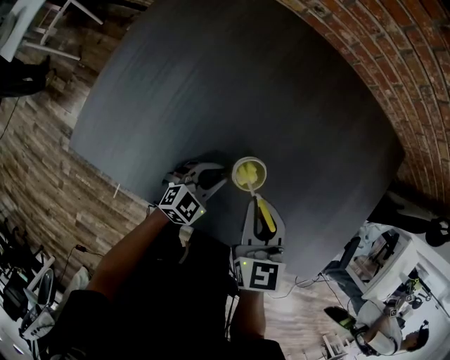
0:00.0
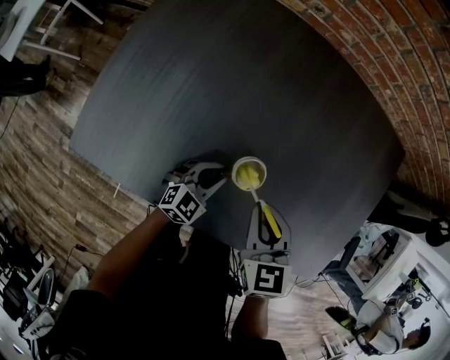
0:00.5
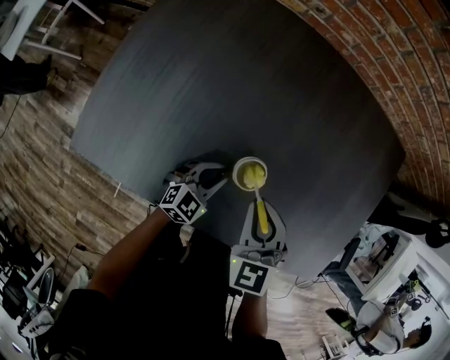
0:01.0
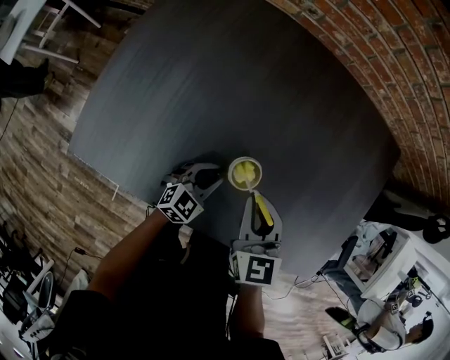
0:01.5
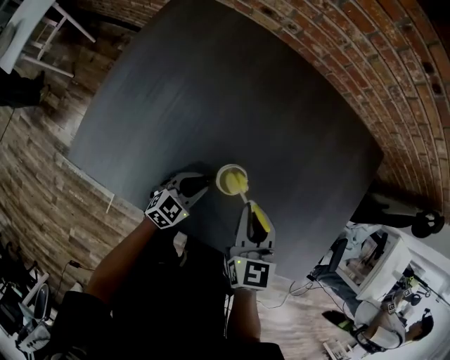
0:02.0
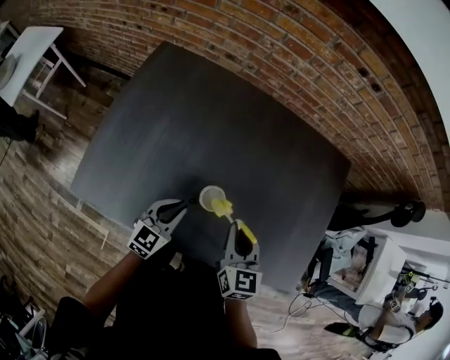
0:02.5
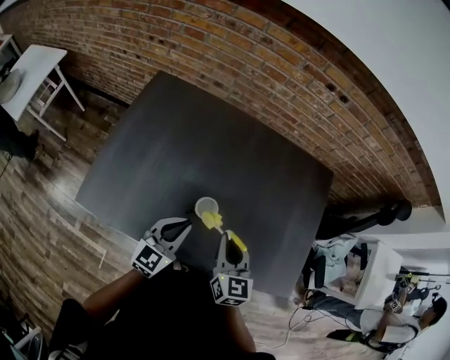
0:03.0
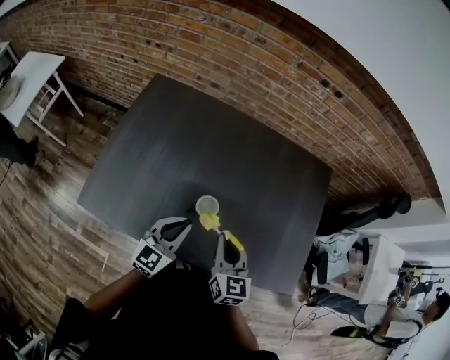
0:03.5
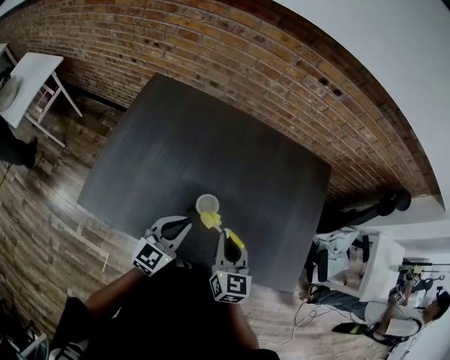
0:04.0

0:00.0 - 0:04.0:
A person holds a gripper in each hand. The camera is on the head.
0:02.0 - 0:04.0: The left gripper goes about 25 cm upward, and swivels about 20 degrees. The right gripper moves upward and backward, some 15 cm.

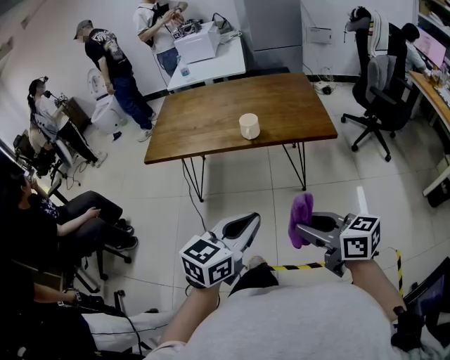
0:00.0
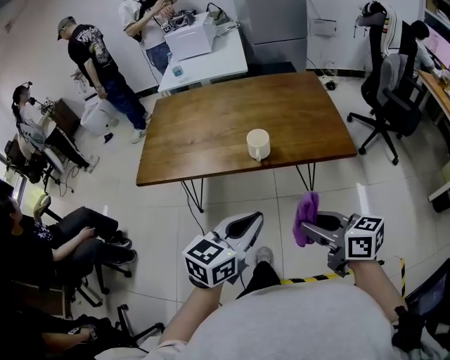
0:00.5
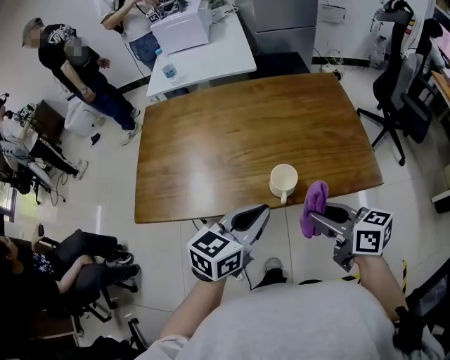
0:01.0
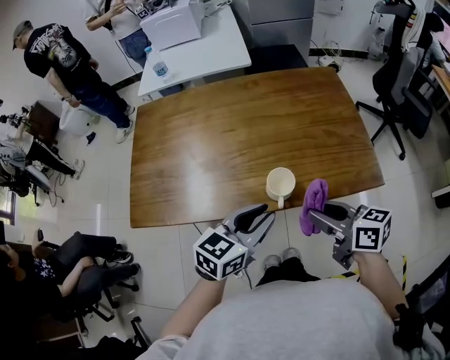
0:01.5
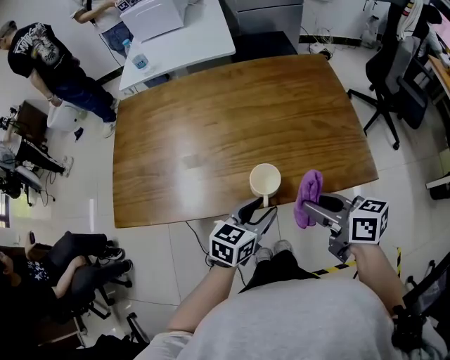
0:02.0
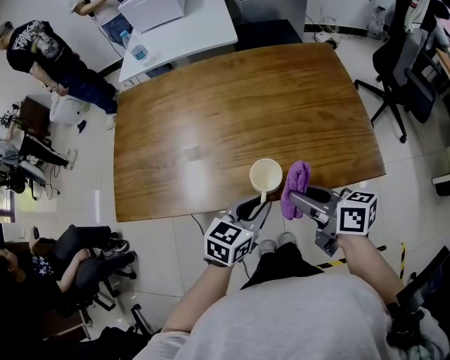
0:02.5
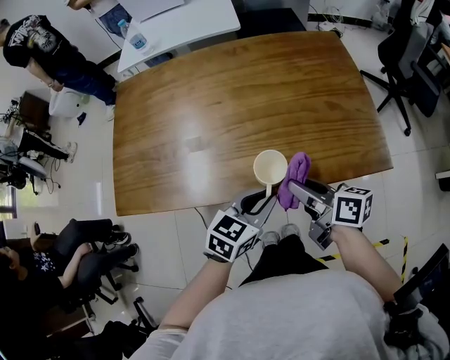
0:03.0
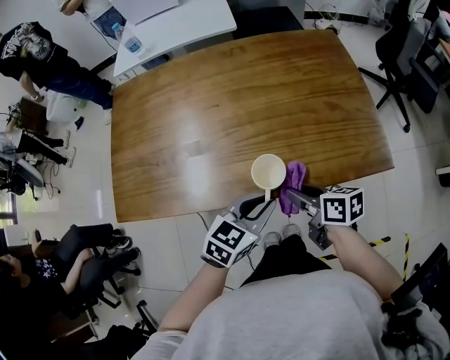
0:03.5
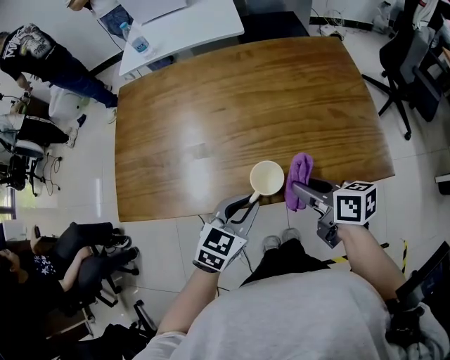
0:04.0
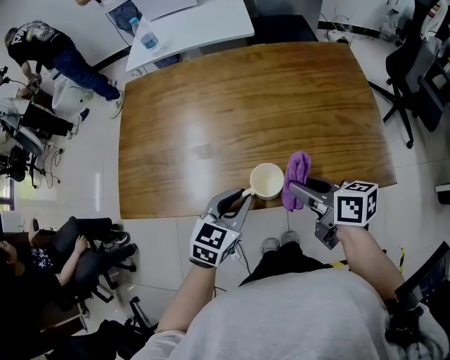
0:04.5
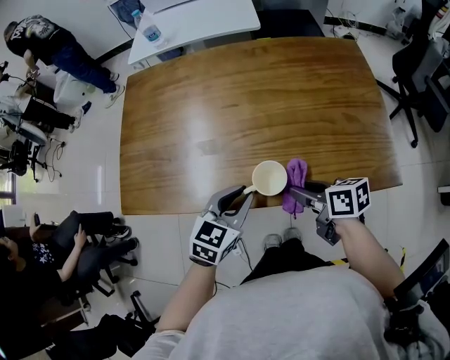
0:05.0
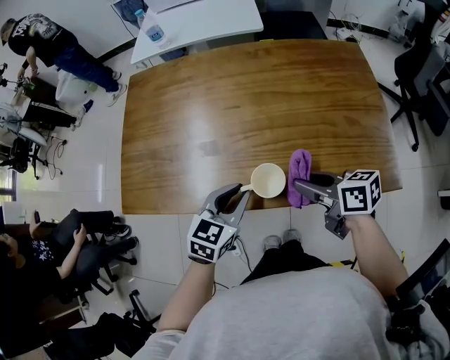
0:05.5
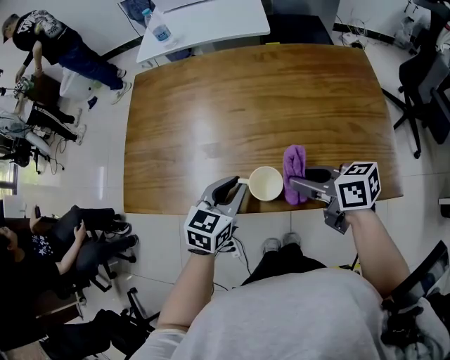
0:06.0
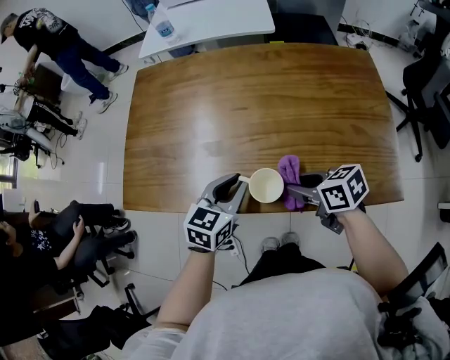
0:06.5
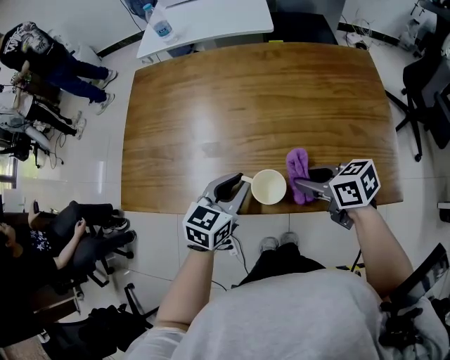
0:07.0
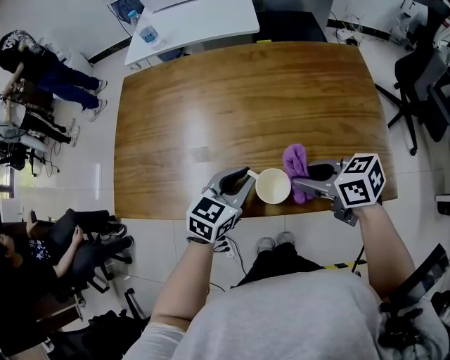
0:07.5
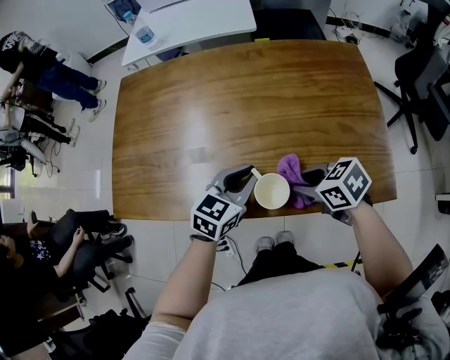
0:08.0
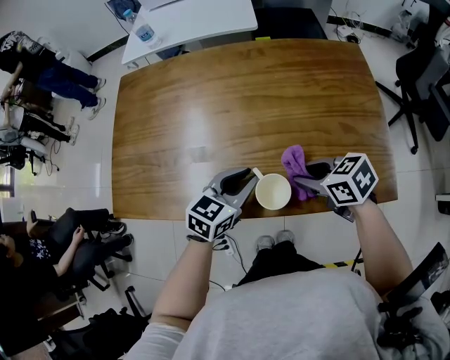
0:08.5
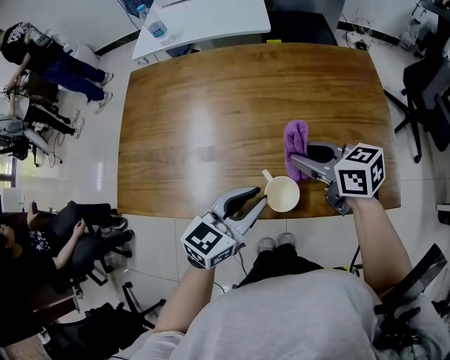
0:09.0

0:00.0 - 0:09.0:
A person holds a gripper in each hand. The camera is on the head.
0:00.0 - 0:02.0: The pair of grippers is taken forward, about 40 cm. The left gripper travels downward by some 20 cm, and opens up.
0:02.0 - 0:04.5: The right gripper is displaced forward and to the left by some 10 cm. The left gripper goes approximately 10 cm to the left, and closes.
0:04.5 - 0:07.0: The right gripper swings up and down, about 5 cm each way, with 2 reversals, and swivels roughly 30 degrees. The left gripper moves forward, approximately 5 cm.
0:07.0 - 0:09.0: The right gripper heads forward and upward, covering approximately 10 cm, while the left gripper goes some 10 cm upward and to the right.

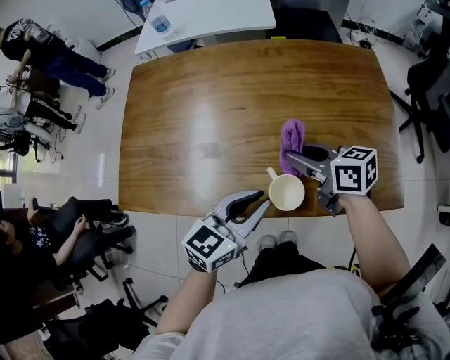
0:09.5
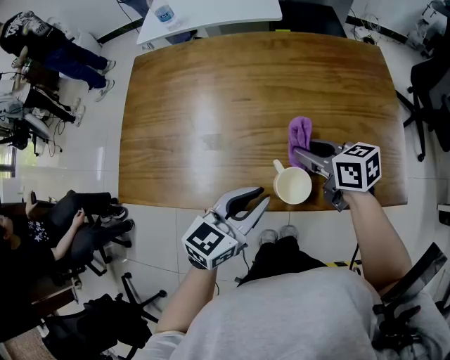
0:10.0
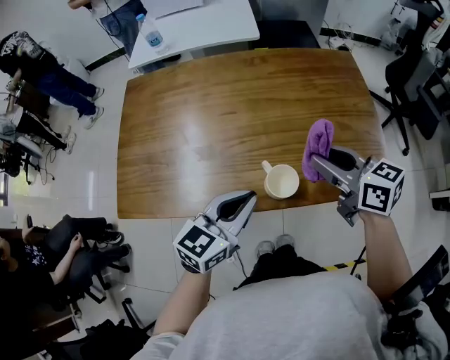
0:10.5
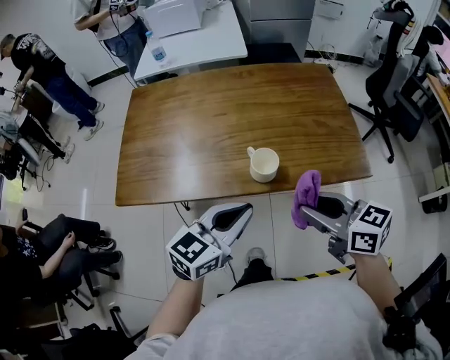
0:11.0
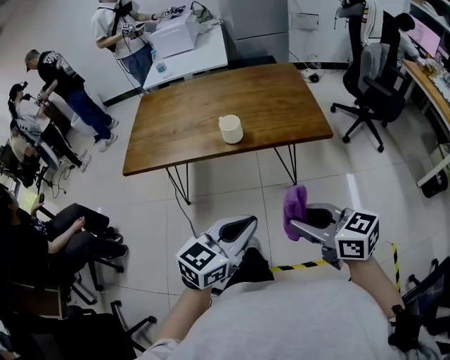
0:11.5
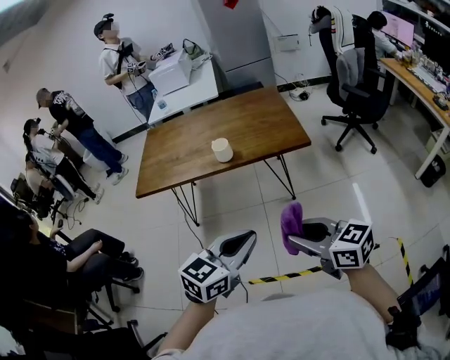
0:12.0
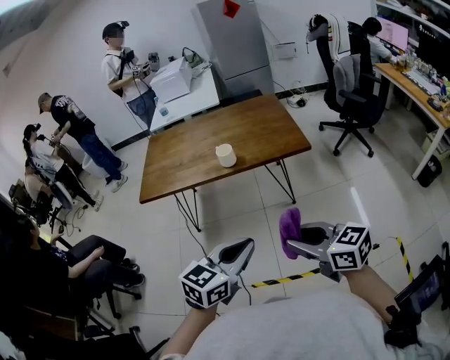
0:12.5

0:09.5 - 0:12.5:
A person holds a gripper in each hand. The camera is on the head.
0:09.5 - 0:11.0: The left gripper travels backward and upward by roughly 15 cm. Meanwhile the right gripper travels backward and upward by some 25 cm.
0:11.0 - 0:12.5: The two grippers travel together, backward, roughly 40 cm.

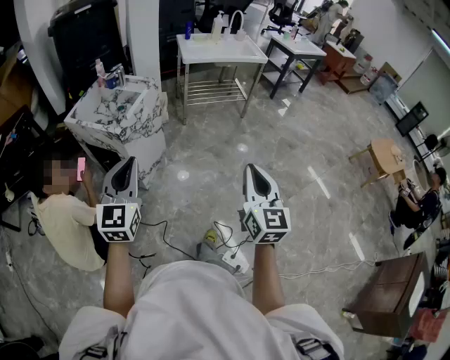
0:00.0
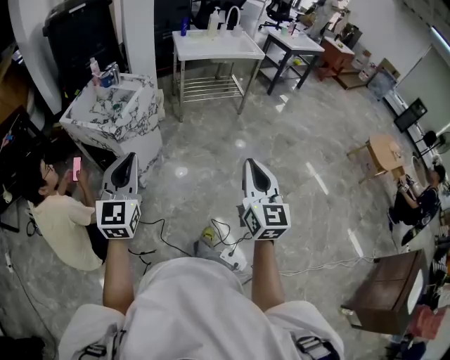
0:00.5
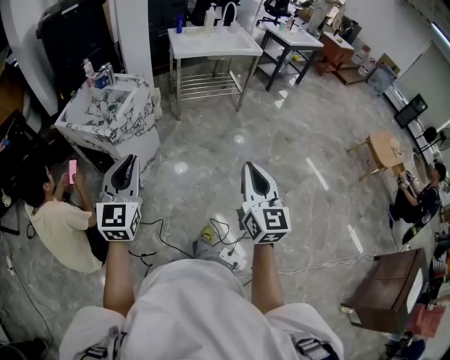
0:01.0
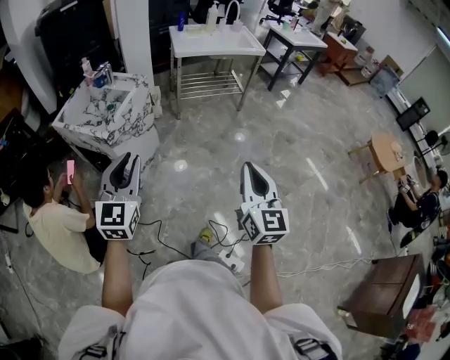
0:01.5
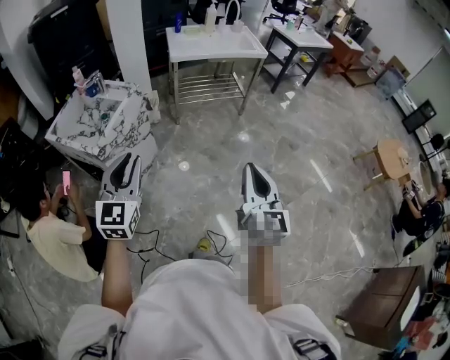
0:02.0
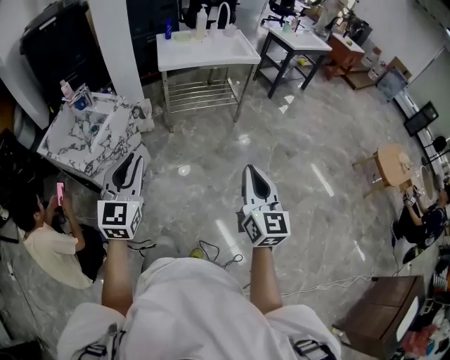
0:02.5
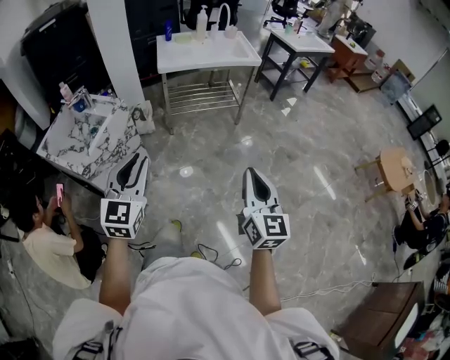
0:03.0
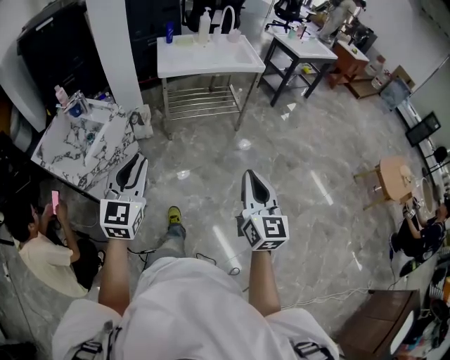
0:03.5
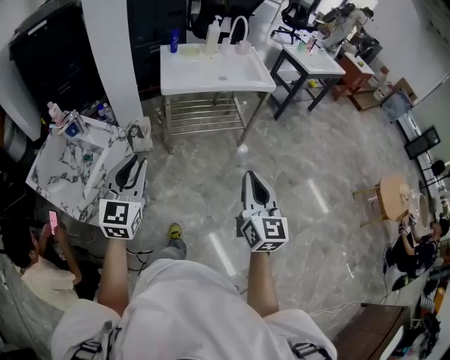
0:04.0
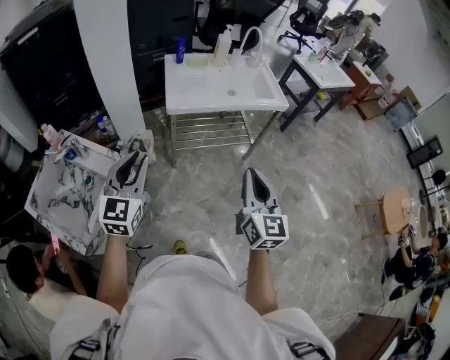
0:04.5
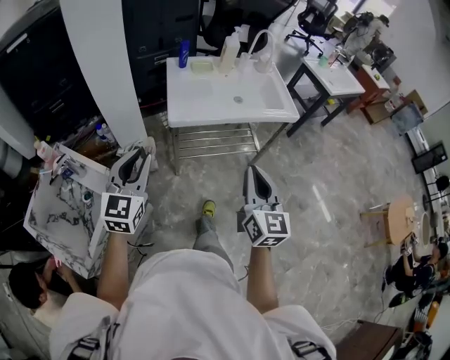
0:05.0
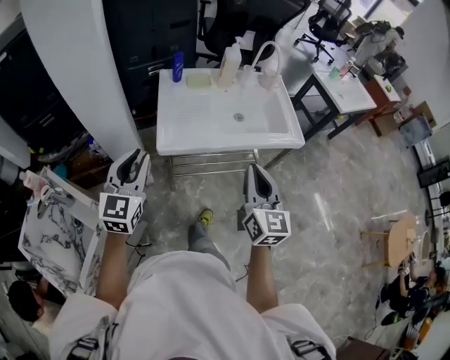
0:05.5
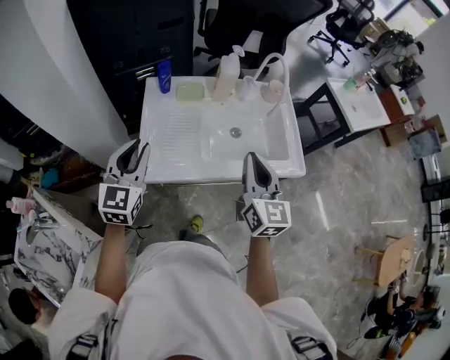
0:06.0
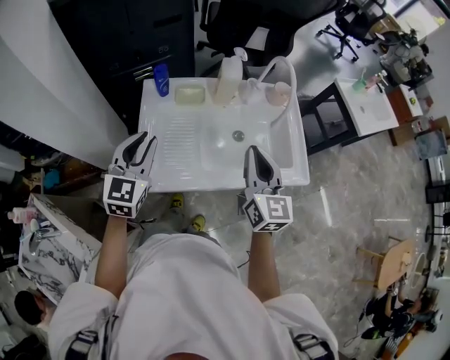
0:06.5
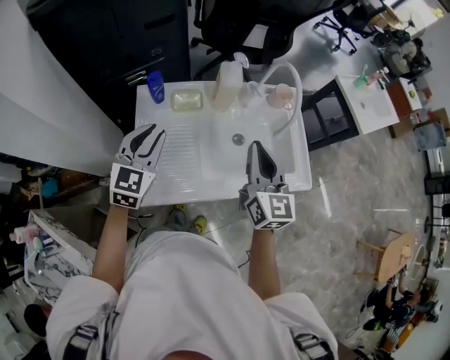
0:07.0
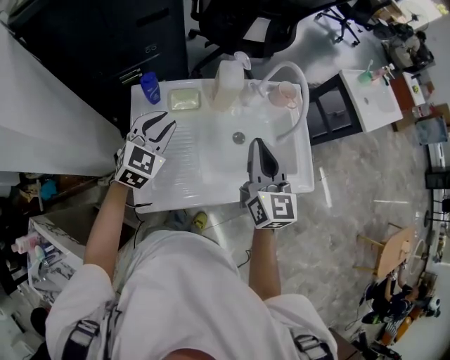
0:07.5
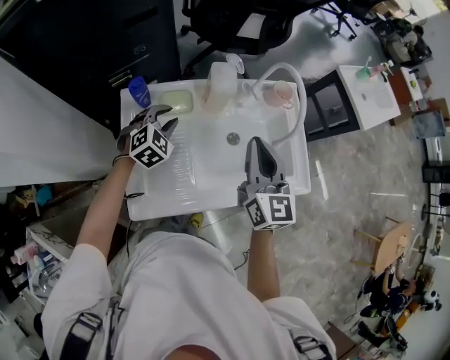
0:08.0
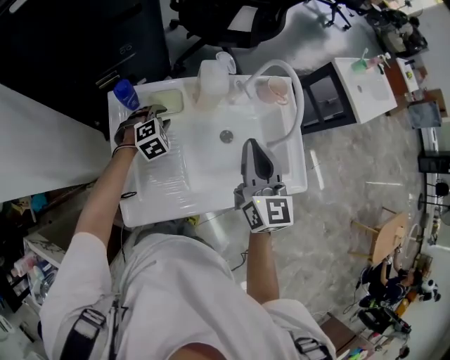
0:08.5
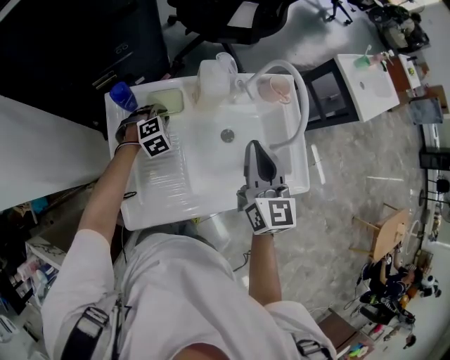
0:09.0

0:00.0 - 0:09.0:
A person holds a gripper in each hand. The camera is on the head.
0:00.0 - 0:02.0: Both grippers move forward and to the right, roughly 20 cm.
0:02.0 - 0:04.5: The pair of grippers is taken forward, roughly 50 cm.
0:04.5 - 0:07.0: Both grippers are carried forward, roughly 70 cm.
0:07.0 - 0:09.0: The left gripper is displaced downward and forward by some 30 cm, and tips its fingers downward by approximately 40 degrees. Meanwhile the right gripper shifts approximately 10 cm forward.

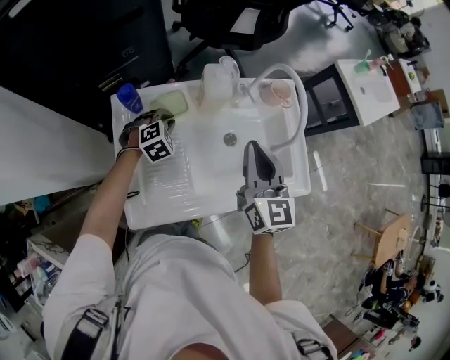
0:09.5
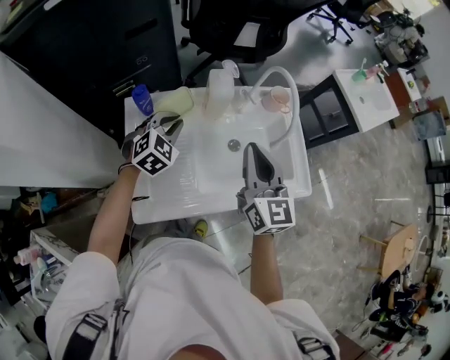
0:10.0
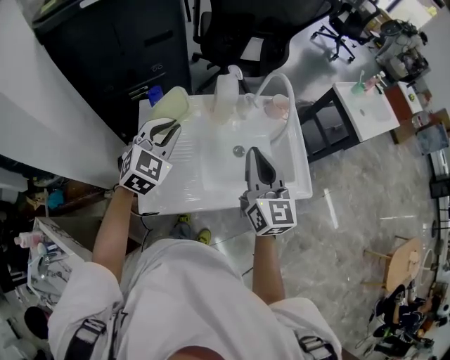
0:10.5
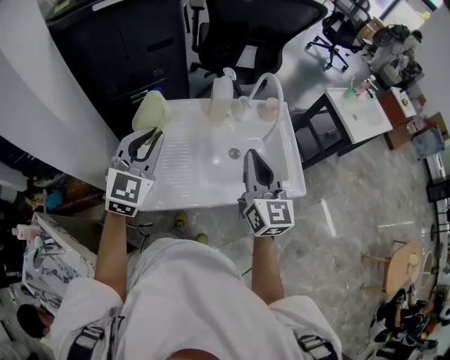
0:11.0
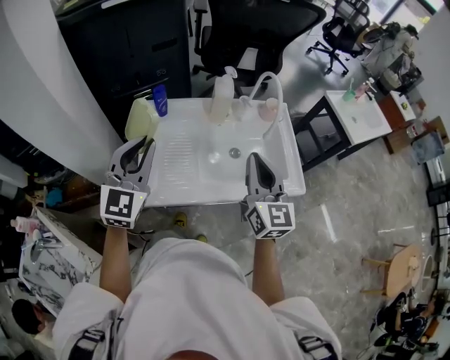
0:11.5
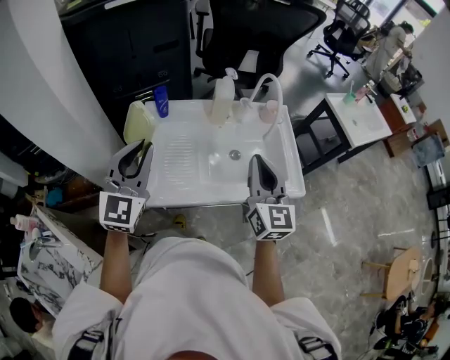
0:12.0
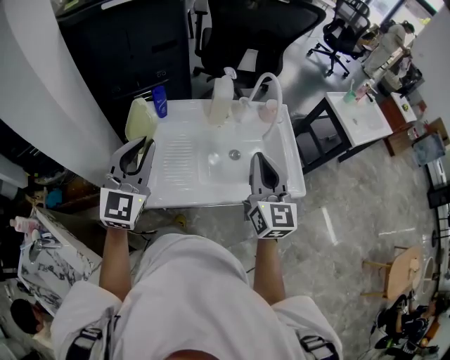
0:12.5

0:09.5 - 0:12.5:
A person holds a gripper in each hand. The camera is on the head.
0:09.5 - 0:11.0: The left gripper is displaced upward and backward by about 40 cm, and angles its fingers upward, by approximately 50 degrees; the right gripper is displaced backward and upward by some 15 cm.
0:11.0 - 0:12.5: The left gripper goes approximately 5 cm backward.
